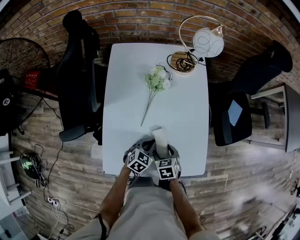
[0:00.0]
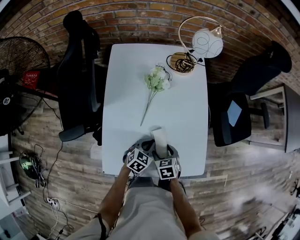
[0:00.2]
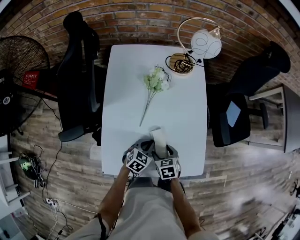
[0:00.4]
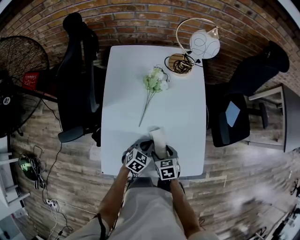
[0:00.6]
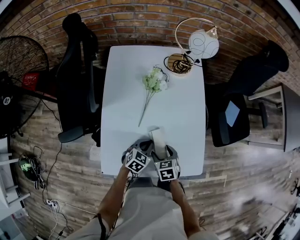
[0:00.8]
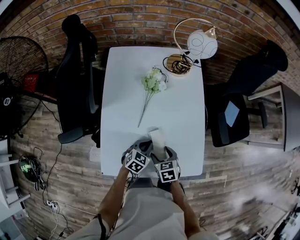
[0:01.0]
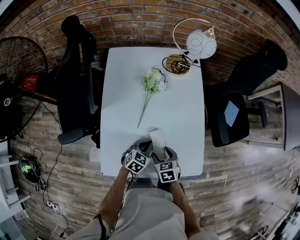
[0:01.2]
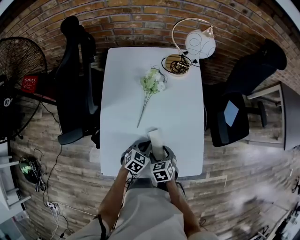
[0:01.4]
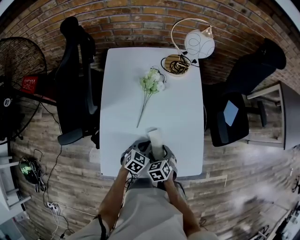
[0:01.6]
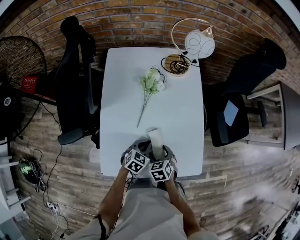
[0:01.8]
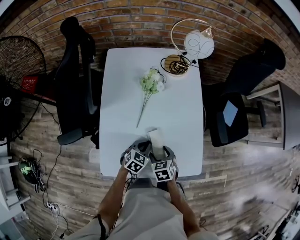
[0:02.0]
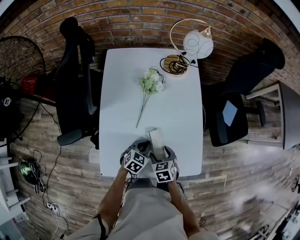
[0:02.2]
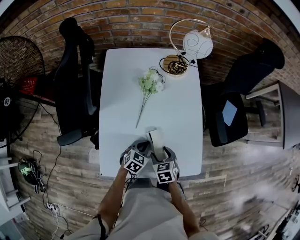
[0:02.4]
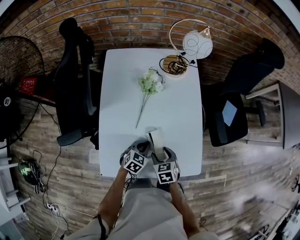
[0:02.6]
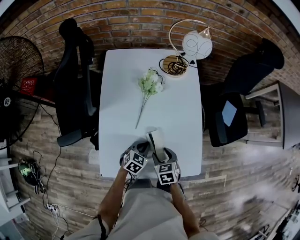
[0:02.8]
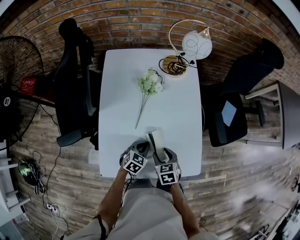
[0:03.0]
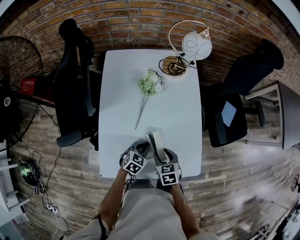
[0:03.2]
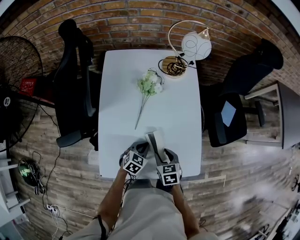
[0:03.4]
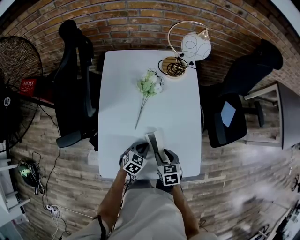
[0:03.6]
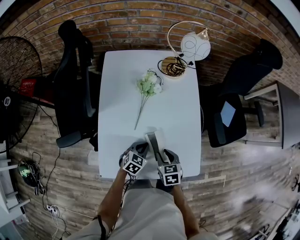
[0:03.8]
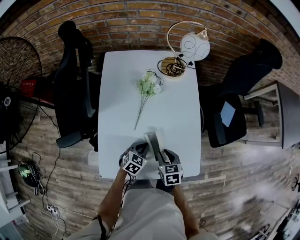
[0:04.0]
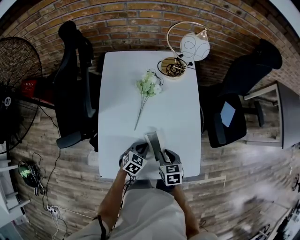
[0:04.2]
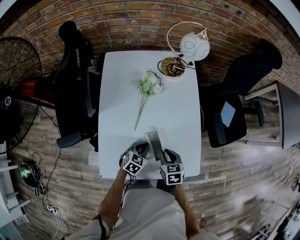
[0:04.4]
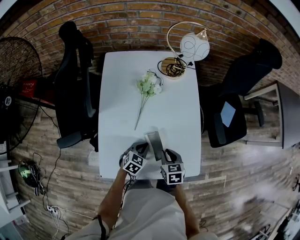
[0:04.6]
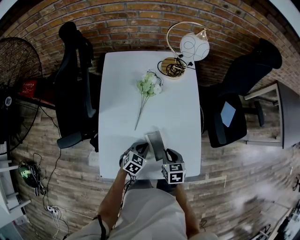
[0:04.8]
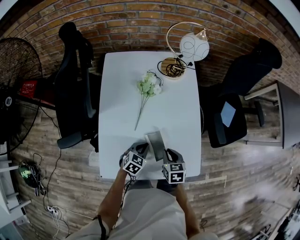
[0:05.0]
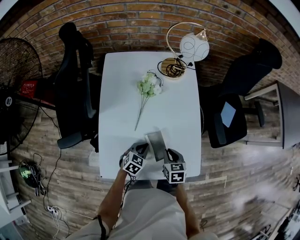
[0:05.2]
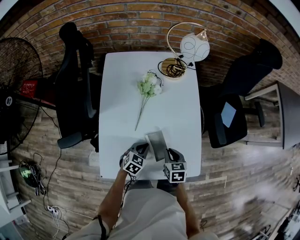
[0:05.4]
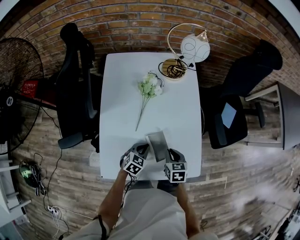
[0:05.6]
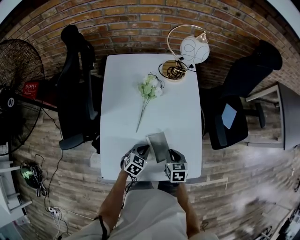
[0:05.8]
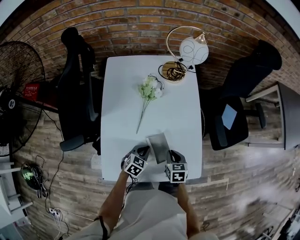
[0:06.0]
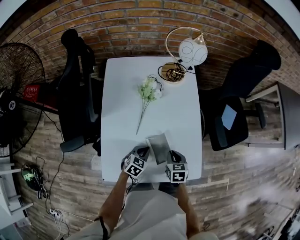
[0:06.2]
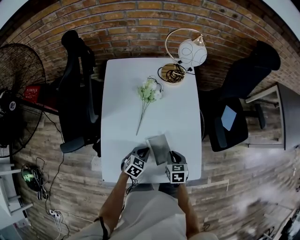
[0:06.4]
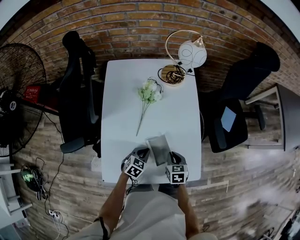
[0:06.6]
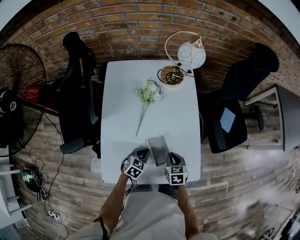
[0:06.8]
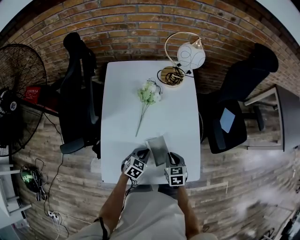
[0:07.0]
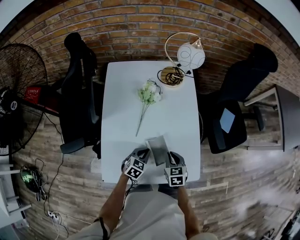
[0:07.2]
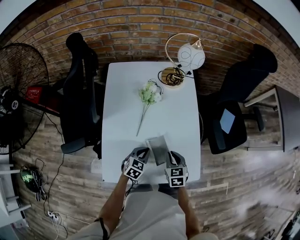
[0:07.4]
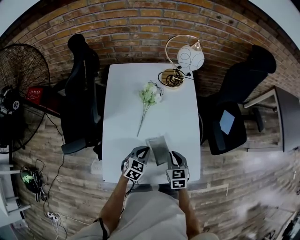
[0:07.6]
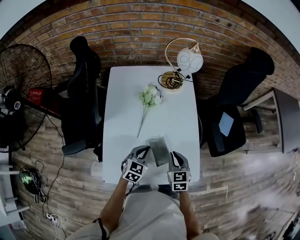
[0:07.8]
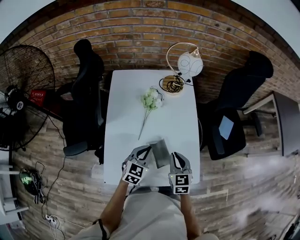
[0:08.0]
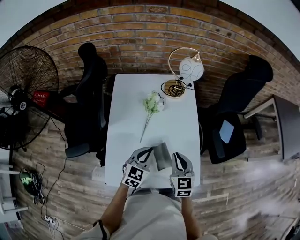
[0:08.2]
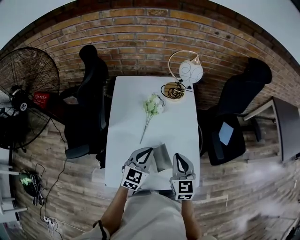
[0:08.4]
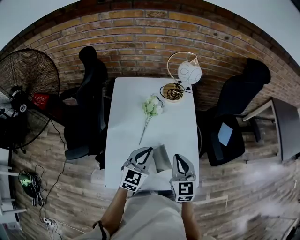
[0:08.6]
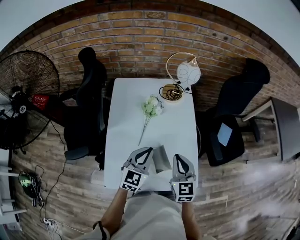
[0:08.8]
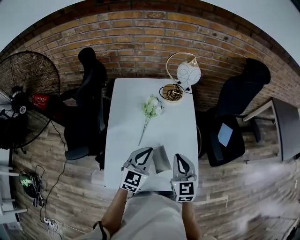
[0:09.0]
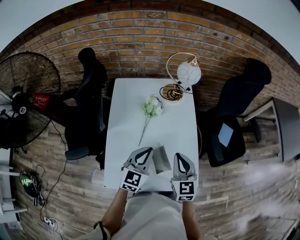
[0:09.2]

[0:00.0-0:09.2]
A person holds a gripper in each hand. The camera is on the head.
0.0 to 3.0 s: The grippers move only a little.
3.0 to 4.6 s: The right gripper closes its fingers.
4.6 to 6.2 s: The grippers make only small movements.
6.2 to 7.6 s: Both grippers move upward, approximately 5 cm.
7.6 to 9.2 s: The two grippers go roughly 15 cm upward. The left gripper changes its angle by roughly 30 degrees; the right gripper turns by roughly 20 degrees.

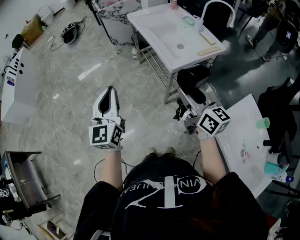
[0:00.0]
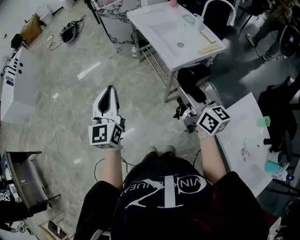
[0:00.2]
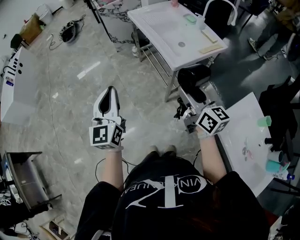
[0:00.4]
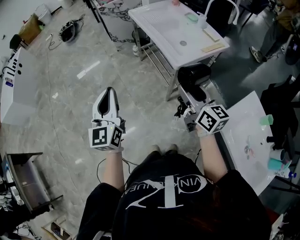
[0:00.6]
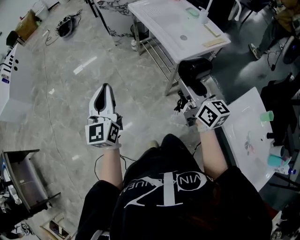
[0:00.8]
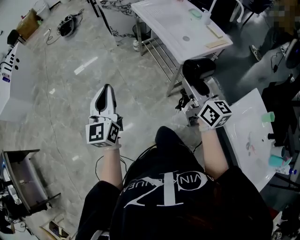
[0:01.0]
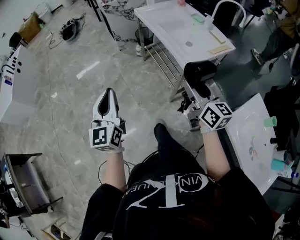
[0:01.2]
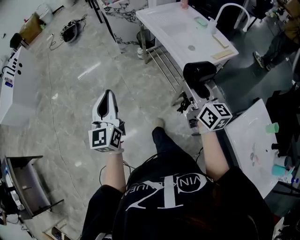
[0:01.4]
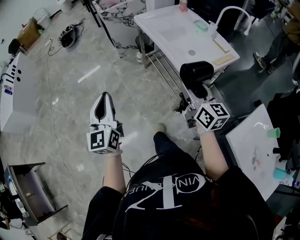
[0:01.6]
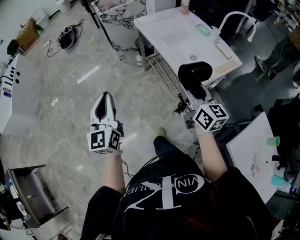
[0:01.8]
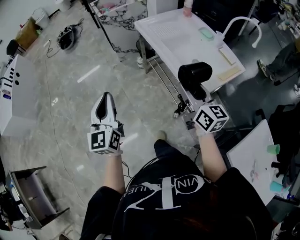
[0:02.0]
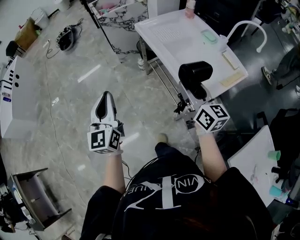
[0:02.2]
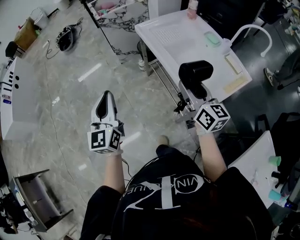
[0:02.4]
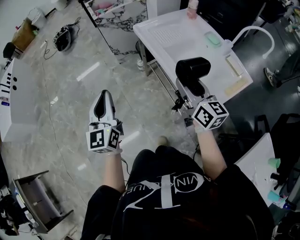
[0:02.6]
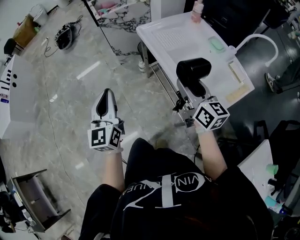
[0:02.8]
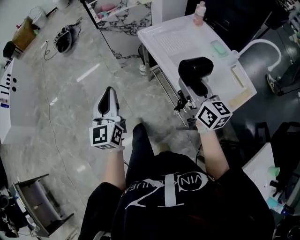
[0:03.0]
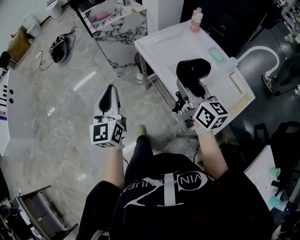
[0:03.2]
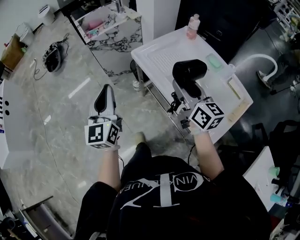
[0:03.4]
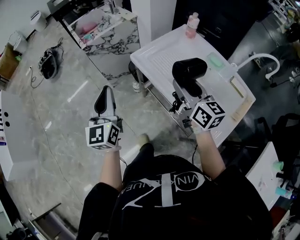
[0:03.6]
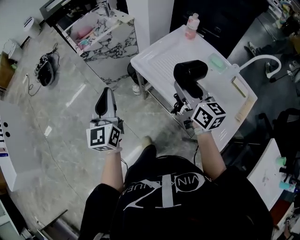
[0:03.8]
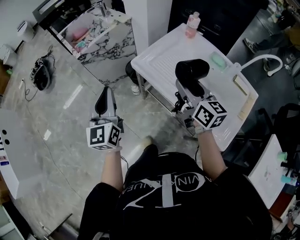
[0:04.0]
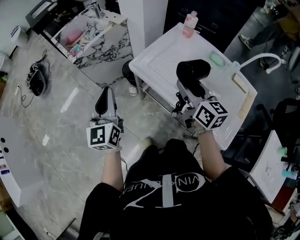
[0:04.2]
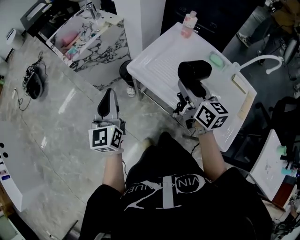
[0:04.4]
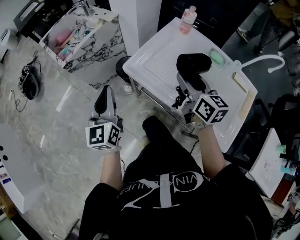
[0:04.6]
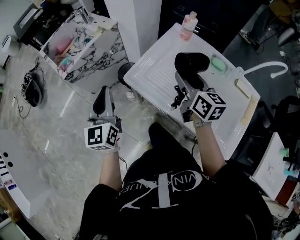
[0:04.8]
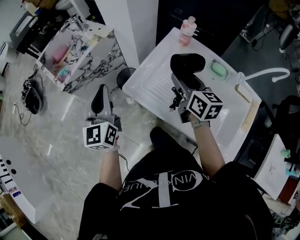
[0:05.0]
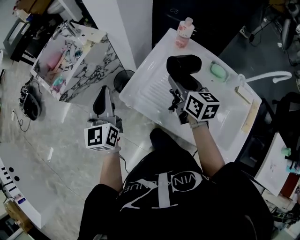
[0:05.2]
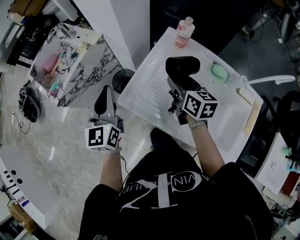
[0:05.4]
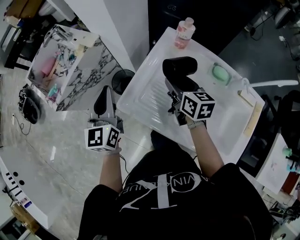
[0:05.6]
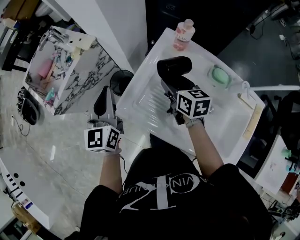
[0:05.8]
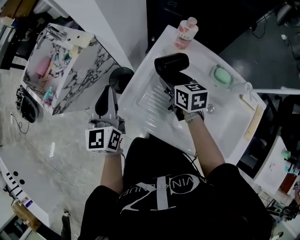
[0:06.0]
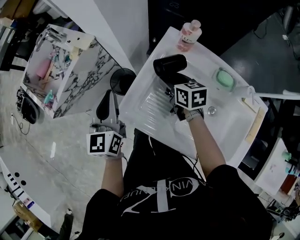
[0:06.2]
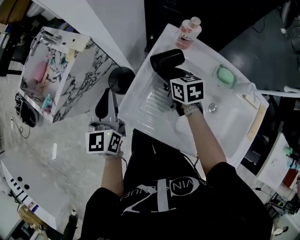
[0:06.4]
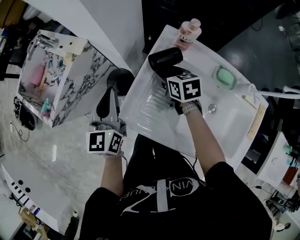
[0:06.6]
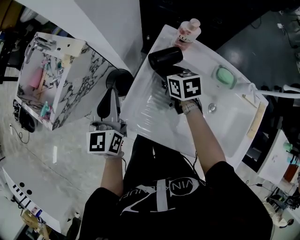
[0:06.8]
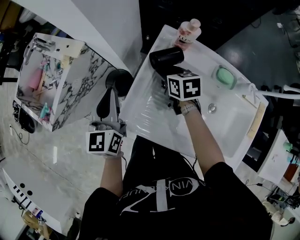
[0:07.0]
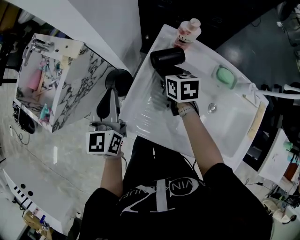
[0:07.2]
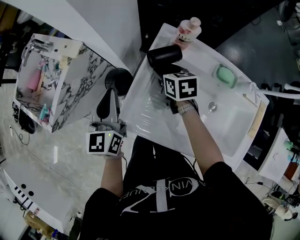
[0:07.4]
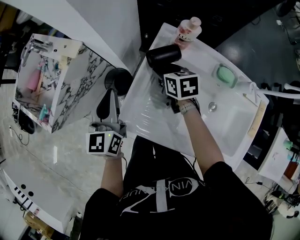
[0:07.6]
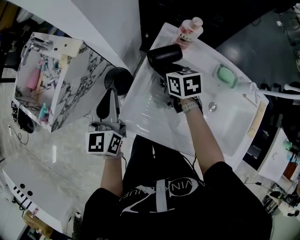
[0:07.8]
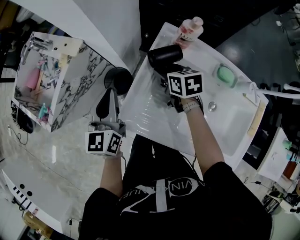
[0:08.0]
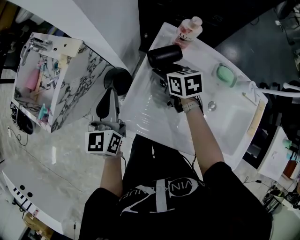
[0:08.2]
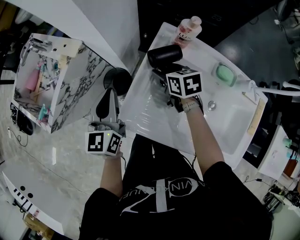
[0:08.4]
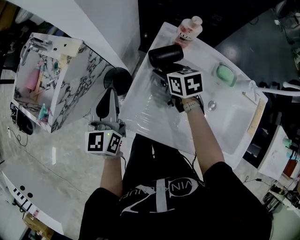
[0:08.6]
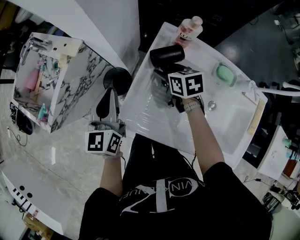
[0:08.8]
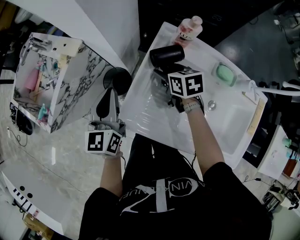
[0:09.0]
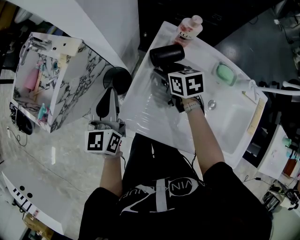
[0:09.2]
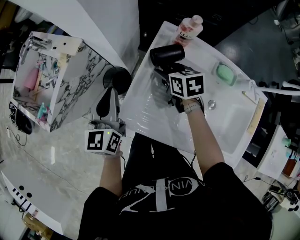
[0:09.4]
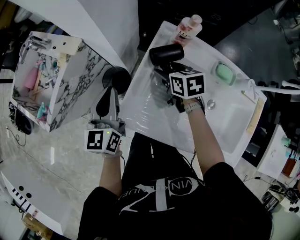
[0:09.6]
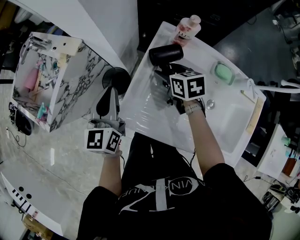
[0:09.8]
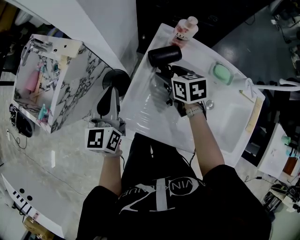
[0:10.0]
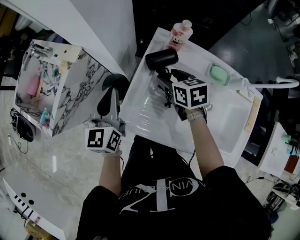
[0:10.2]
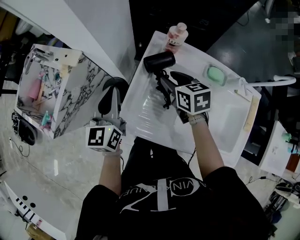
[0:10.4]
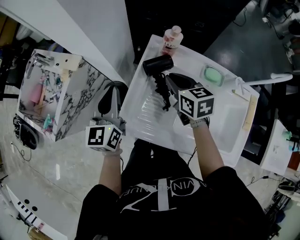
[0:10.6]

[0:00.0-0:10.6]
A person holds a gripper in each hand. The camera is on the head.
0.0 to 1.6 s: The right gripper is displaced forward by approximately 15 cm; the left gripper heads forward and to the left, covering approximately 15 cm.
1.6 to 3.0 s: Both grippers travel together forward, about 30 cm.
3.0 to 4.6 s: Both grippers travel together forward, approximately 30 cm. The right gripper changes its angle by approximately 30 degrees. Meanwhile the left gripper swivels approximately 20 degrees.
4.6 to 6.0 s: The right gripper moves forward and downward, some 25 cm, and swivels approximately 20 degrees; the left gripper travels forward by about 25 cm.
6.0 to 7.6 s: The grippers both shift forward by about 5 cm.
7.6 to 9.0 s: The two grippers keep their place.
9.0 to 10.6 s: The right gripper goes roughly 10 cm upward, and closes up. Meanwhile the left gripper ends up roughly 5 cm from where it was.

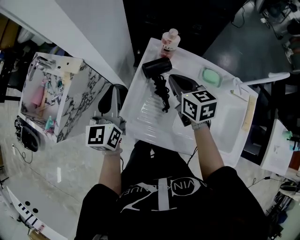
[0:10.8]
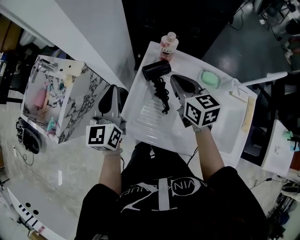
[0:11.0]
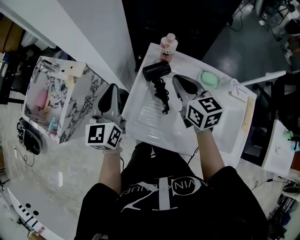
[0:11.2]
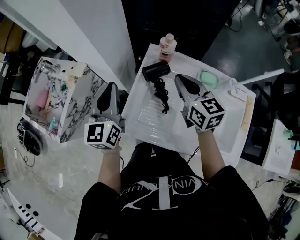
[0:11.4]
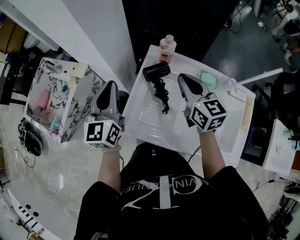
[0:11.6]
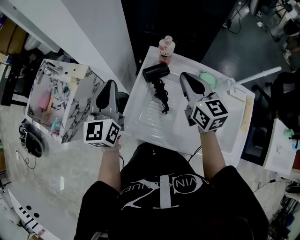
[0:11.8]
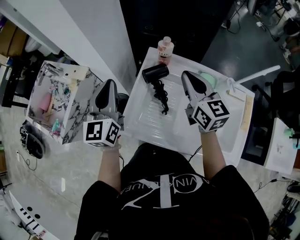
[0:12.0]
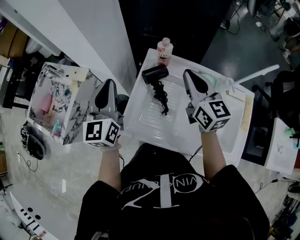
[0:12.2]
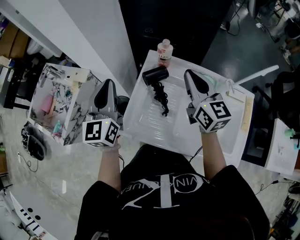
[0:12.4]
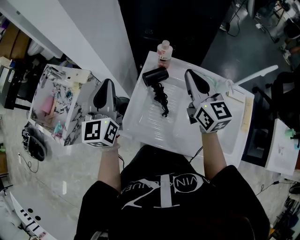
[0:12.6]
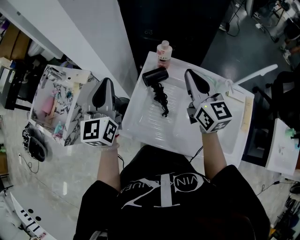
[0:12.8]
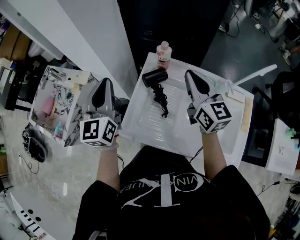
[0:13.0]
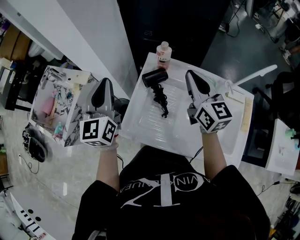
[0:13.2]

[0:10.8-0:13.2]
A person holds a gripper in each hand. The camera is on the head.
10.8 to 12.0 s: The grippers both shift upward by roughly 10 cm. The right gripper changes its angle by approximately 20 degrees.
12.0 to 13.2 s: The grippers move only a little.

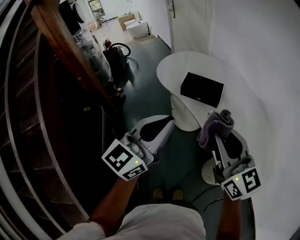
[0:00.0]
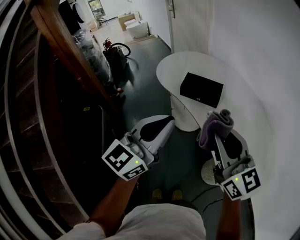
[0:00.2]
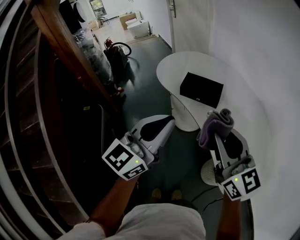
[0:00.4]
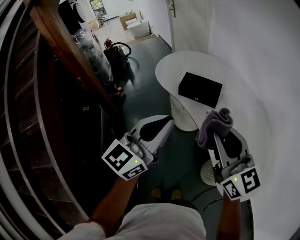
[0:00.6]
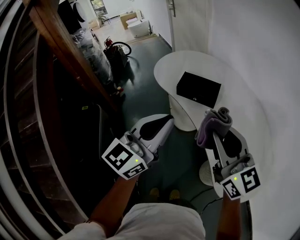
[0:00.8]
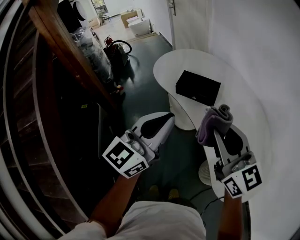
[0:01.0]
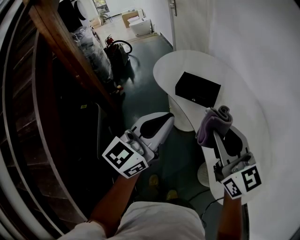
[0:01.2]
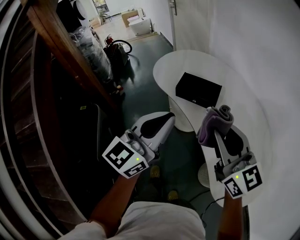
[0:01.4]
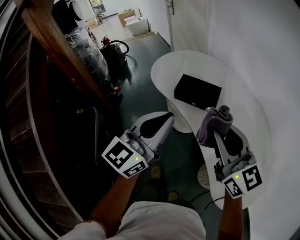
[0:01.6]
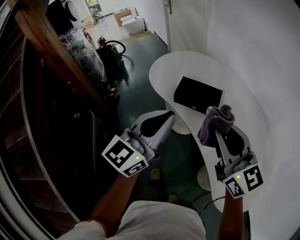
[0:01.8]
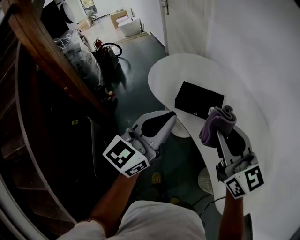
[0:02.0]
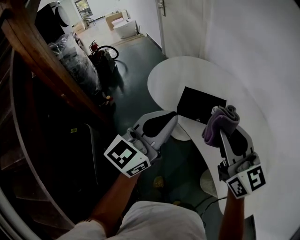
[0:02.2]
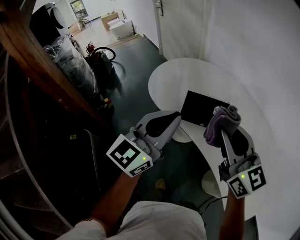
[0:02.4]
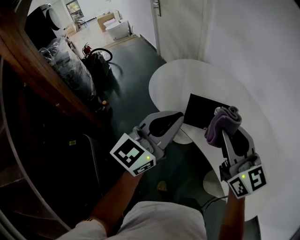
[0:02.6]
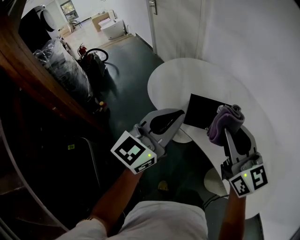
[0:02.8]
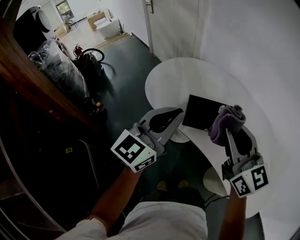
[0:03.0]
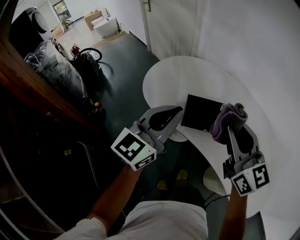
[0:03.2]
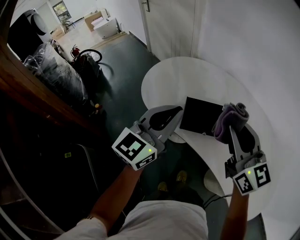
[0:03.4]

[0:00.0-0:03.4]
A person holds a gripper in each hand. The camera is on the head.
0.0 to 1.6 s: The grippers both shift forward by approximately 10 cm.
1.6 to 3.4 s: Both grippers move forward and to the left, approximately 25 cm. The right gripper changes its angle by approximately 20 degrees.
